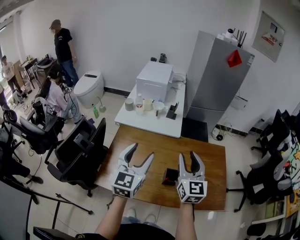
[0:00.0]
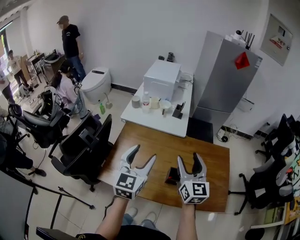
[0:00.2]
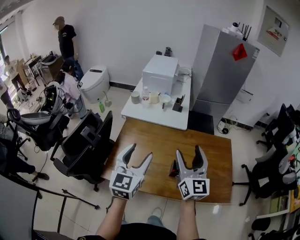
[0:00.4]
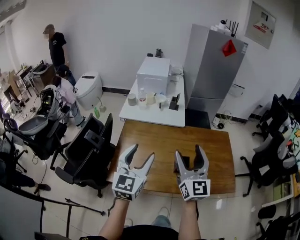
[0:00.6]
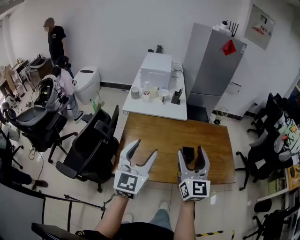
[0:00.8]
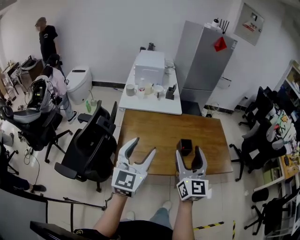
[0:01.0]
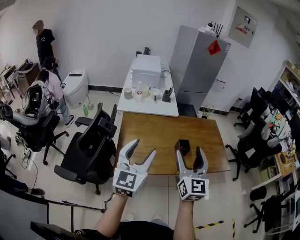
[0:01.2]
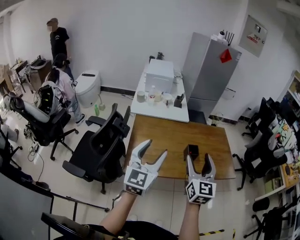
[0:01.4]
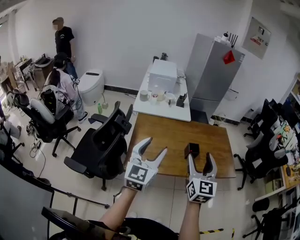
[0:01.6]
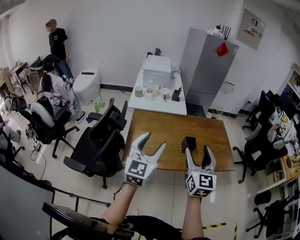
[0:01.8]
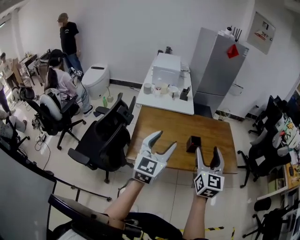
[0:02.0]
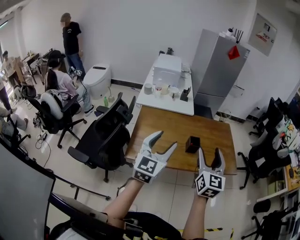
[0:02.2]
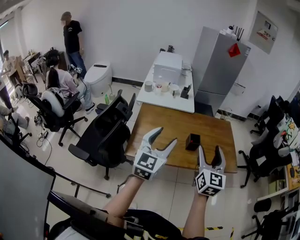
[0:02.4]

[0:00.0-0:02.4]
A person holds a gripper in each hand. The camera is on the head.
0:00.0 to 0:01.2: Both grippers travel together backward and to the left, about 25 cm. The right gripper opens its fingers.
0:01.2 to 0:02.4: Both grippers travel together to the right, roughly 10 cm.

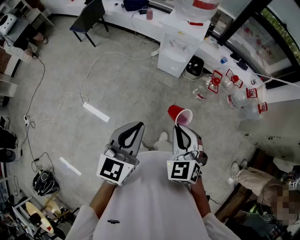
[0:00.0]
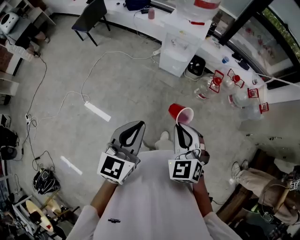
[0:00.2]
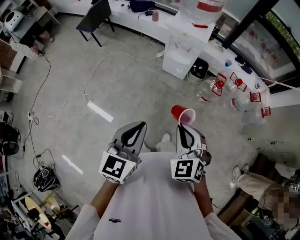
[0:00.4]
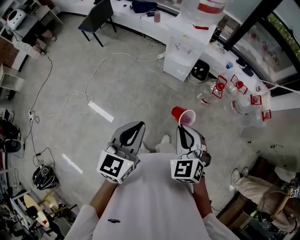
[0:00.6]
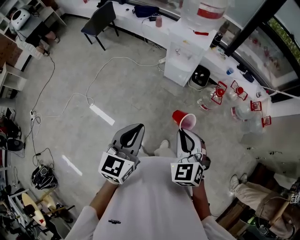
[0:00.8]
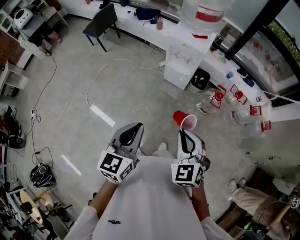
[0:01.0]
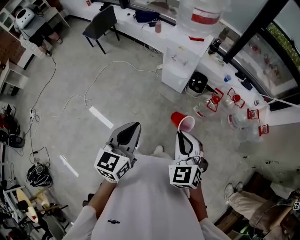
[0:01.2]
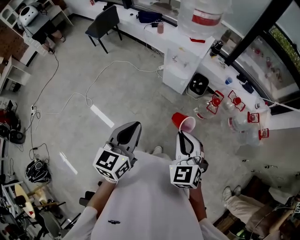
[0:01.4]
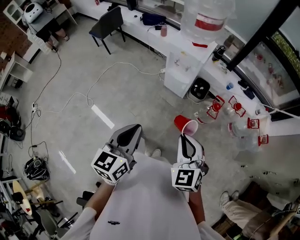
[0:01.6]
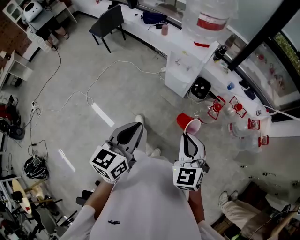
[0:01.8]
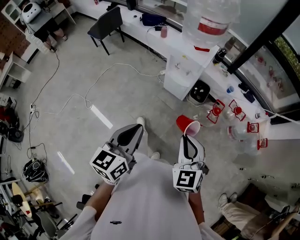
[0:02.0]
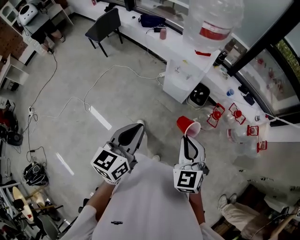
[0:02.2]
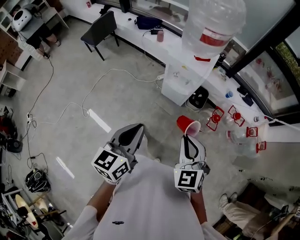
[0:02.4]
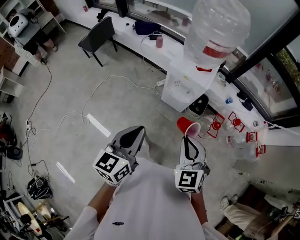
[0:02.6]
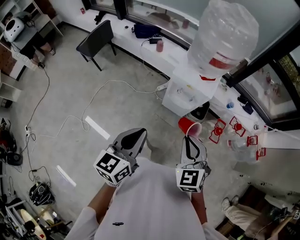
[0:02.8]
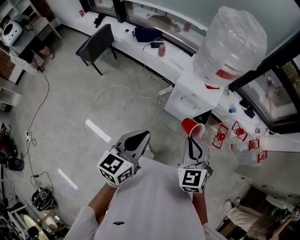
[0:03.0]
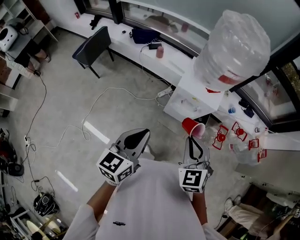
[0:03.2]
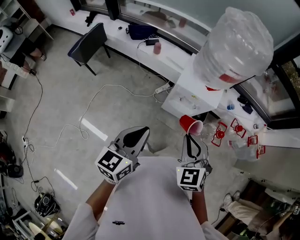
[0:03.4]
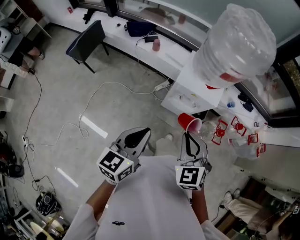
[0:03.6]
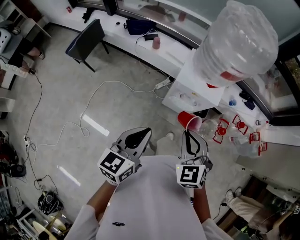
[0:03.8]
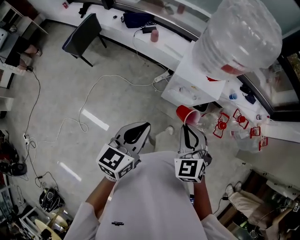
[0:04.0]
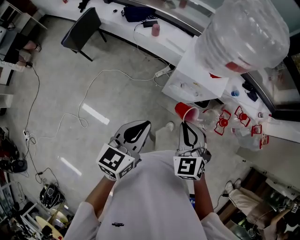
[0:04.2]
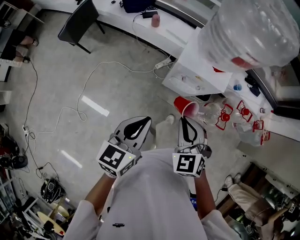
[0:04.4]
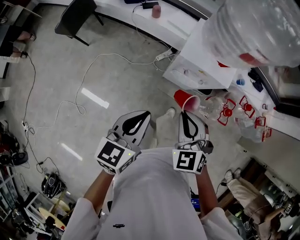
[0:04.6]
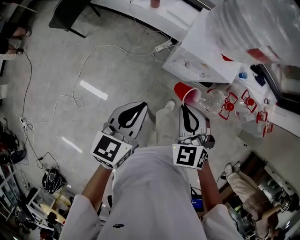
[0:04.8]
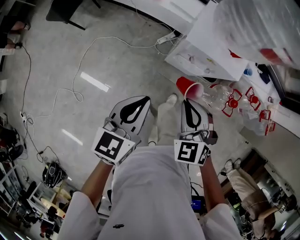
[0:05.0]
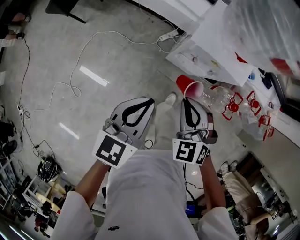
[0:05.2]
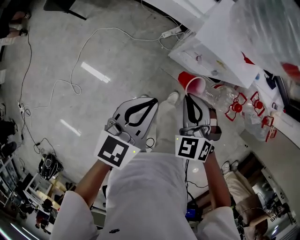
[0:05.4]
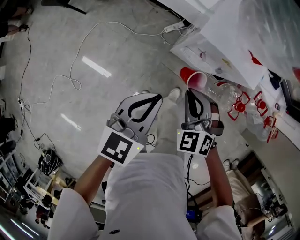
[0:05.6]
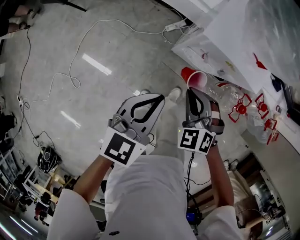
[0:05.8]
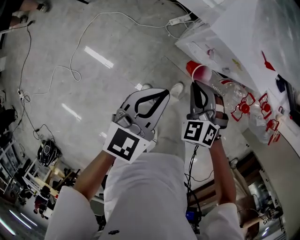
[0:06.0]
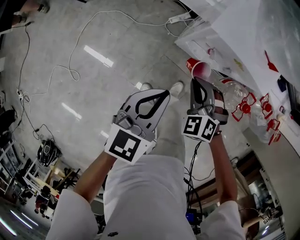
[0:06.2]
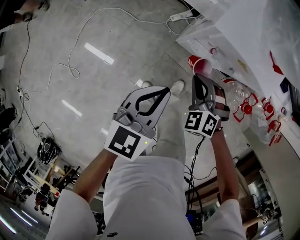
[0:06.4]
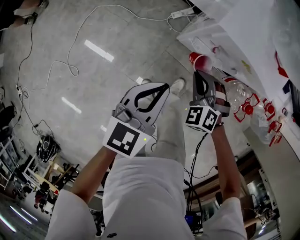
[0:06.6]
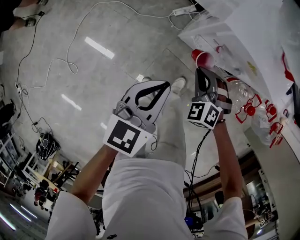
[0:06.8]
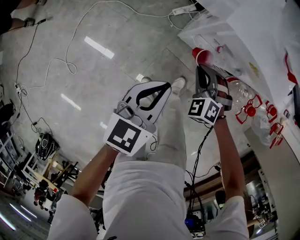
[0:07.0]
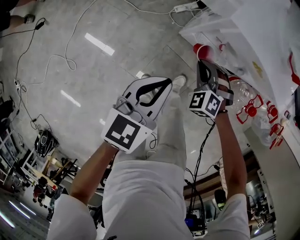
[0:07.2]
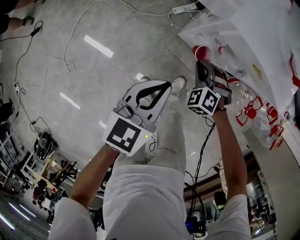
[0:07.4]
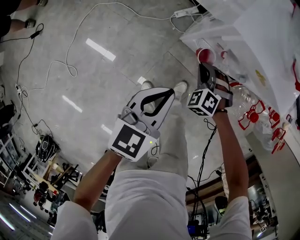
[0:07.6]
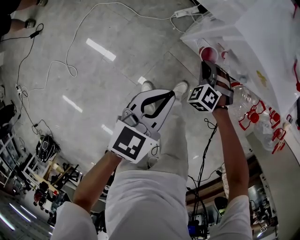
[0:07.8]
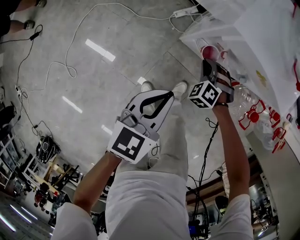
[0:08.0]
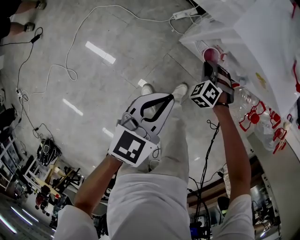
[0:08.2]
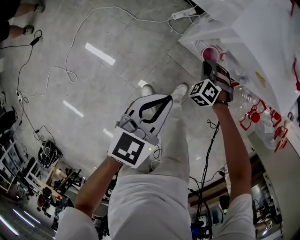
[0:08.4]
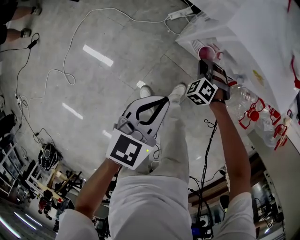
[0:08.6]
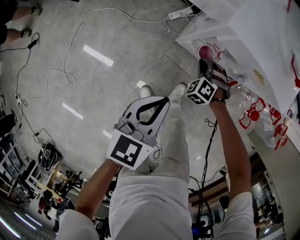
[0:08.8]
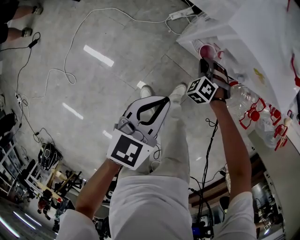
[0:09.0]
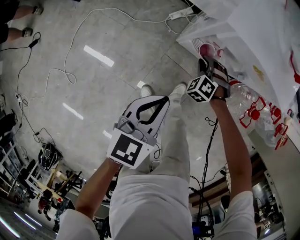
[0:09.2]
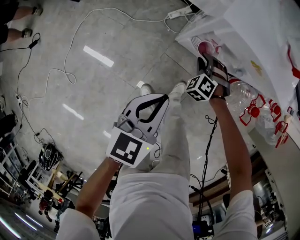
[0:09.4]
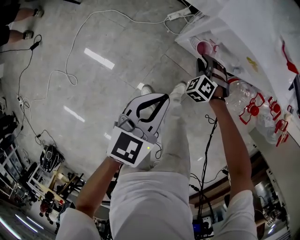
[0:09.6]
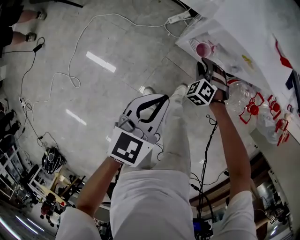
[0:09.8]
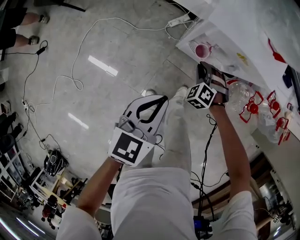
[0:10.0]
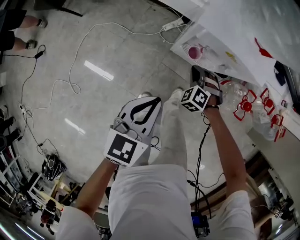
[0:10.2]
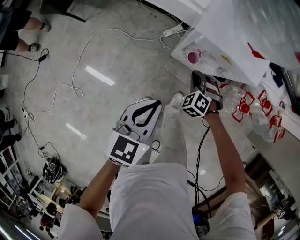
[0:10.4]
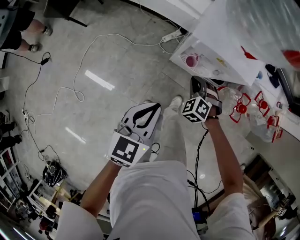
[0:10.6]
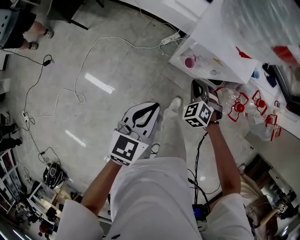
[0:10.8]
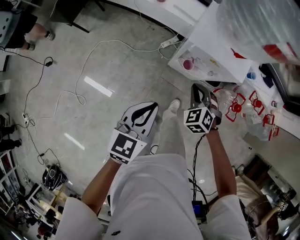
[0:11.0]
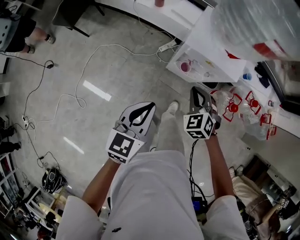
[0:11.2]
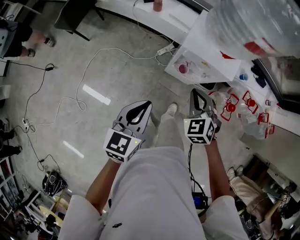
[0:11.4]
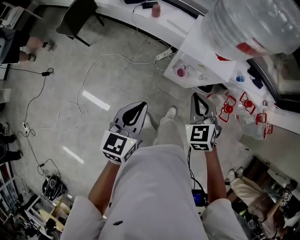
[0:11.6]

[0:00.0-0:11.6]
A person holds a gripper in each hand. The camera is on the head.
0:00.0 to 0:01.4: The two grippers go approximately 10 cm to the right and forward.
0:01.4 to 0:02.8: The right gripper heads forward, covering roughly 25 cm. Meanwhile the left gripper travels forward and to the left by approximately 25 cm.
0:02.8 to 0:04.4: The left gripper goes approximately 15 cm forward and downward. The right gripper moves forward, to the left and downward, roughly 15 cm.
0:04.4 to 0:05.8: The right gripper travels downward by approximately 20 cm, and rotates some 20 degrees. The left gripper shifts roughly 15 cm downward and forward.
0:05.8 to 0:07.2: The left gripper travels downward by some 10 cm; the right gripper travels downward by some 20 cm.
0:07.2 to 0:08.8: The right gripper goes about 10 cm downward and forward.
0:08.8 to 0:10.2: Both grippers travel together upward, approximately 10 cm. The right gripper opens and closes again.
0:10.2 to 0:11.6: The right gripper shifts some 35 cm upward, and changes its angle by about 40 degrees; the left gripper heads upward and to the left, covering some 15 cm.

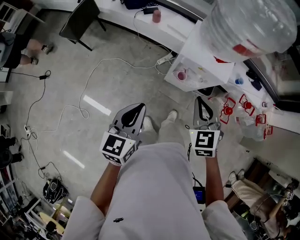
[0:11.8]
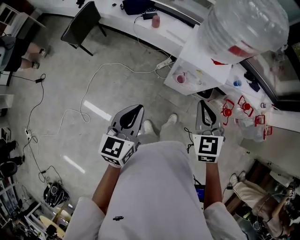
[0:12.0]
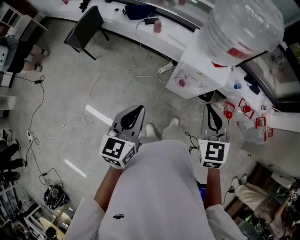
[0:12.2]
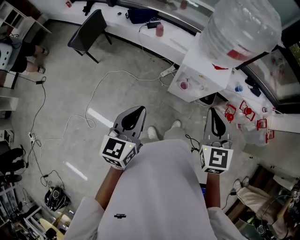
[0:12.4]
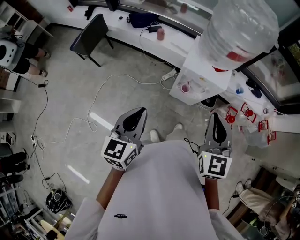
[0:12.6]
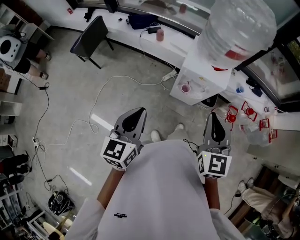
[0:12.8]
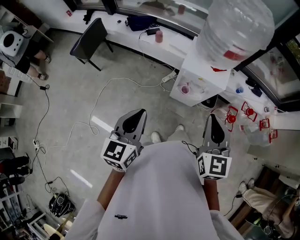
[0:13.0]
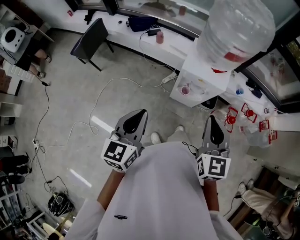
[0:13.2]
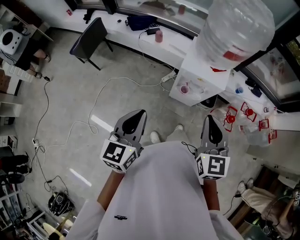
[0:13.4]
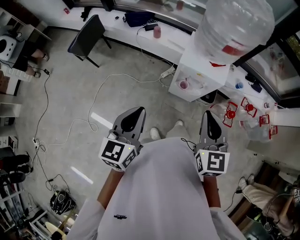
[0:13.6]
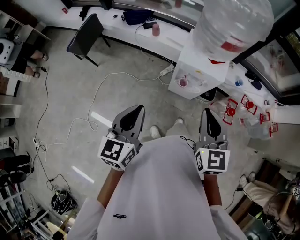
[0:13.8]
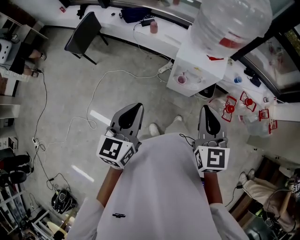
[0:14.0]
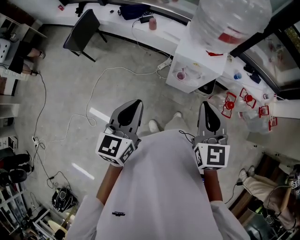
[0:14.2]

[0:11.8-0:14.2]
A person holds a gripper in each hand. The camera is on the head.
0:11.8 to 0:13.0: The right gripper shifts approximately 15 cm upward and backward, and swivels approximately 30 degrees. Meanwhile the left gripper is displaced upward by about 5 cm.
0:13.0 to 0:14.2: The grippers stay close to where they were, moving slightly.

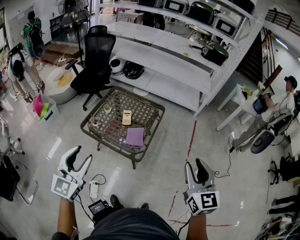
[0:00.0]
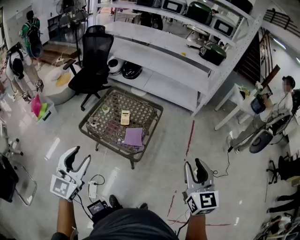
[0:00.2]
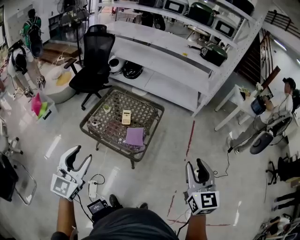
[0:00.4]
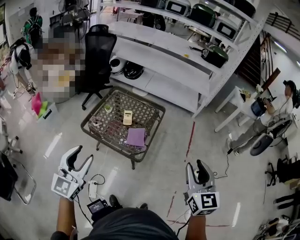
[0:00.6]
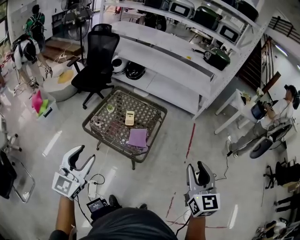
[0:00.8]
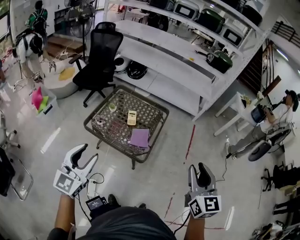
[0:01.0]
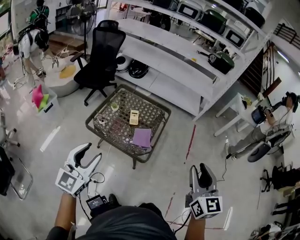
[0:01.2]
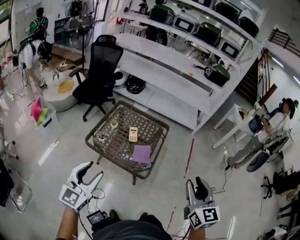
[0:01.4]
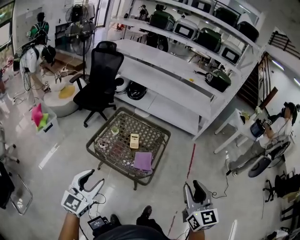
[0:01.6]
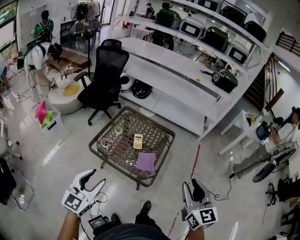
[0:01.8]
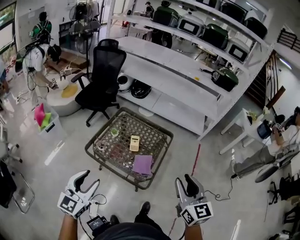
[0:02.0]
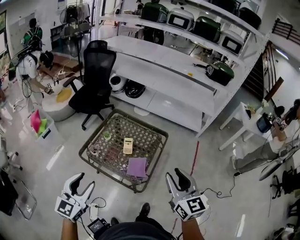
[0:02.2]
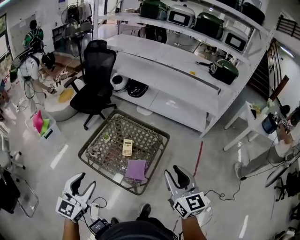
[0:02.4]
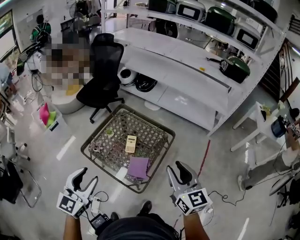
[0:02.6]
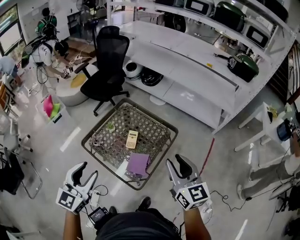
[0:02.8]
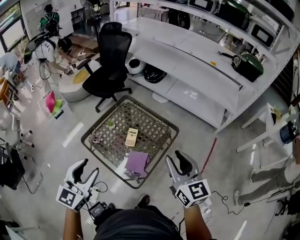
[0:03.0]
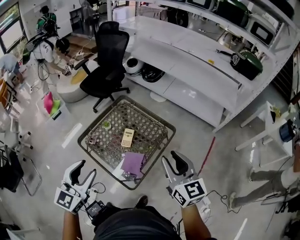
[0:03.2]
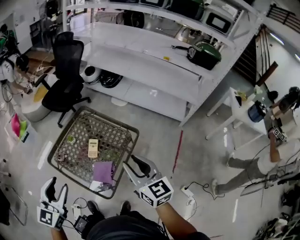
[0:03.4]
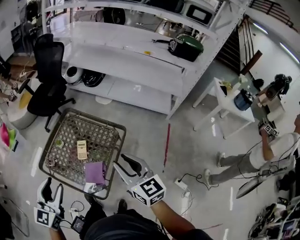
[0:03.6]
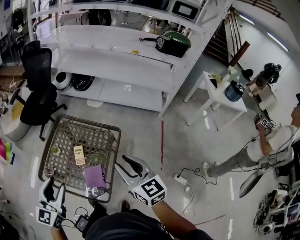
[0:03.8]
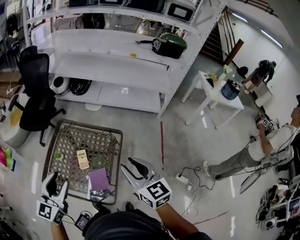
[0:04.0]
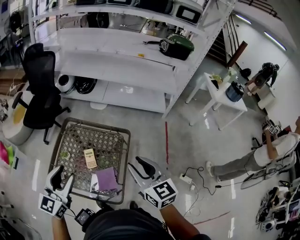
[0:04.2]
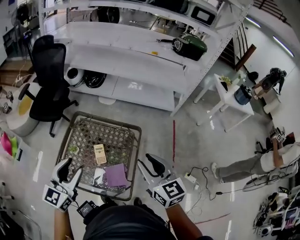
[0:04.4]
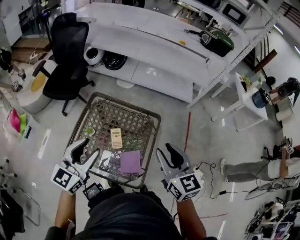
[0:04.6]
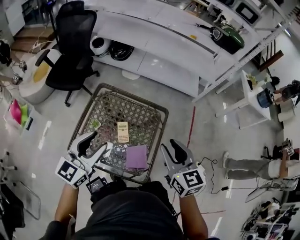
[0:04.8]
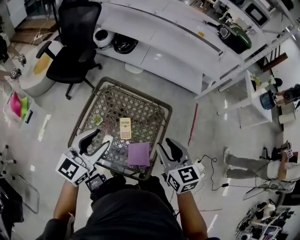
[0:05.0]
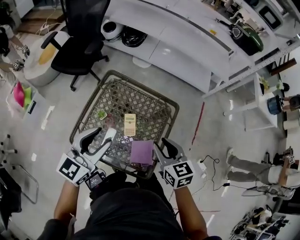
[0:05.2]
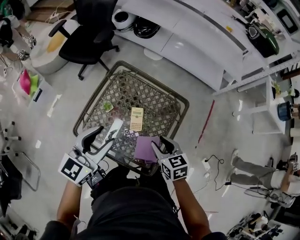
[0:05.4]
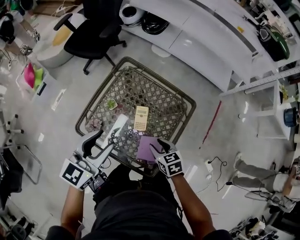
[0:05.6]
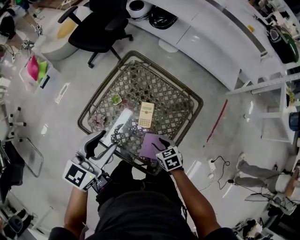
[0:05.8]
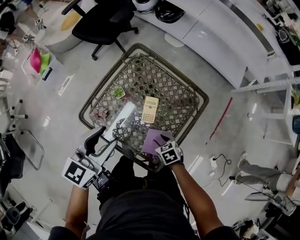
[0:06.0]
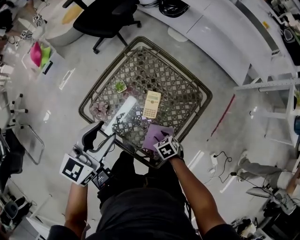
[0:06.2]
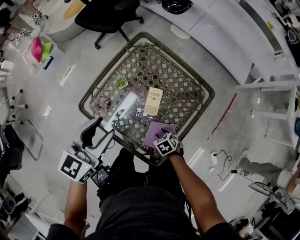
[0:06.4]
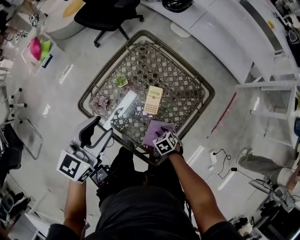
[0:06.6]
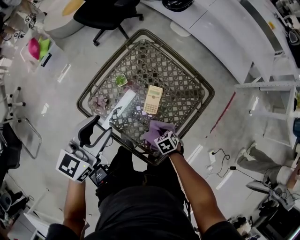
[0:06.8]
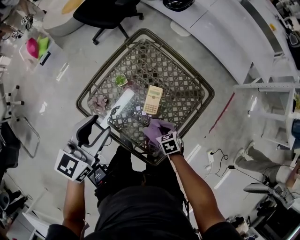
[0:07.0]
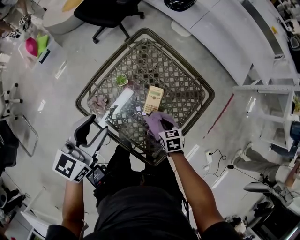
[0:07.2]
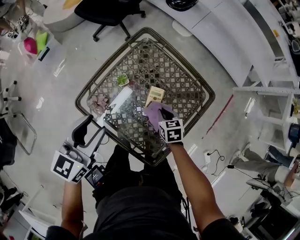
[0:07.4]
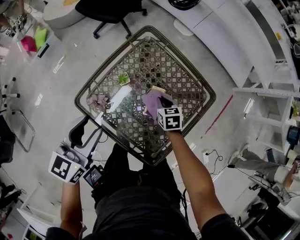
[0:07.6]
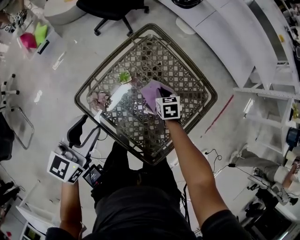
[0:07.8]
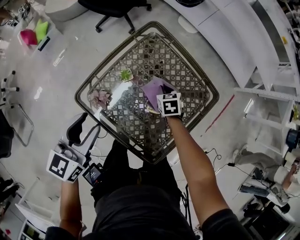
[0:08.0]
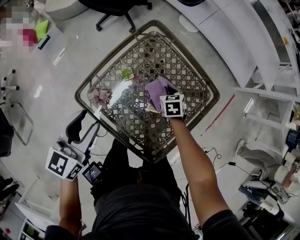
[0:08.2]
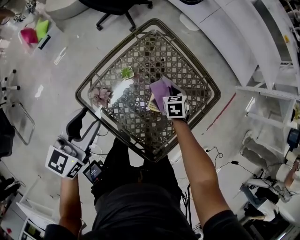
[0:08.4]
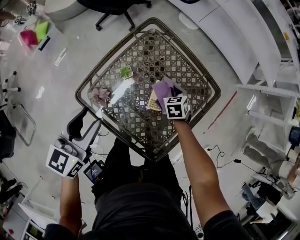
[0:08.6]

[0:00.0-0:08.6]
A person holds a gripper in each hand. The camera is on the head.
0:00.0 to 0:01.4: The right gripper shifts about 10 cm to the left, while the left gripper heads to the left, covering some 5 cm.
0:01.4 to 0:02.8: The left gripper heads forward and to the right, covering about 20 cm. Meanwhile the right gripper shifts approximately 30 cm forward, and swivels roughly 30 degrees.
0:02.8 to 0:04.4: The right gripper heads forward, covering some 5 cm. The left gripper moves forward, roughly 20 cm, and swivels some 20 degrees.
0:04.4 to 0:05.8: The left gripper goes some 15 cm downward, while the right gripper travels downward by some 40 cm, and angles its fingers downward, by some 50 degrees.
0:05.8 to 0:07.2: The right gripper heads downward, covering roughly 5 cm, and closes. The left gripper changes place by about 5 cm.
0:07.2 to 0:08.6: The right gripper travels forward by roughly 15 cm.
